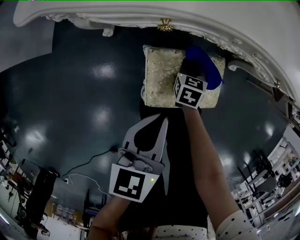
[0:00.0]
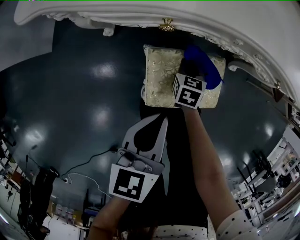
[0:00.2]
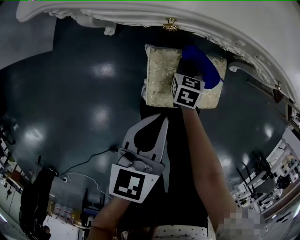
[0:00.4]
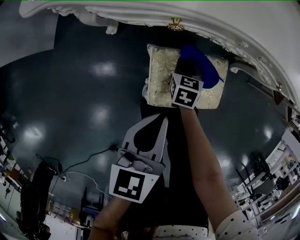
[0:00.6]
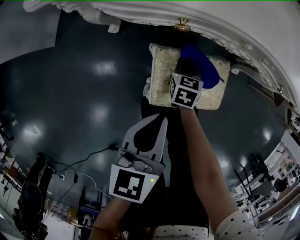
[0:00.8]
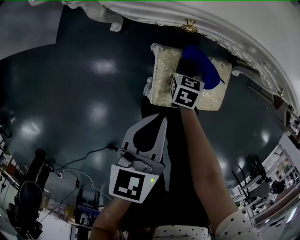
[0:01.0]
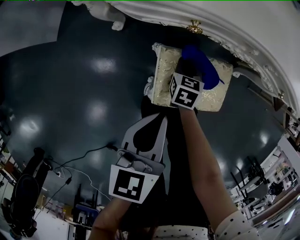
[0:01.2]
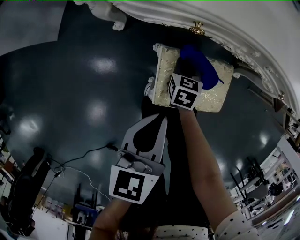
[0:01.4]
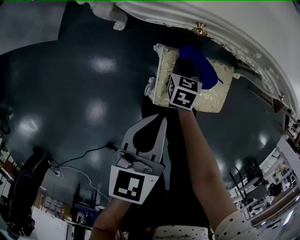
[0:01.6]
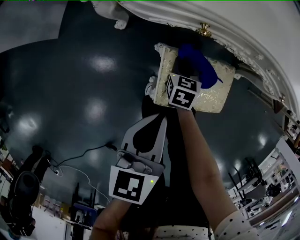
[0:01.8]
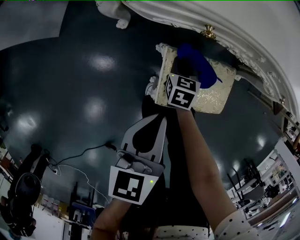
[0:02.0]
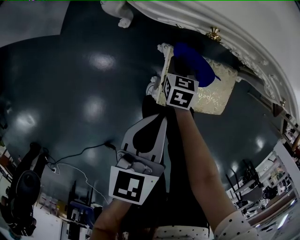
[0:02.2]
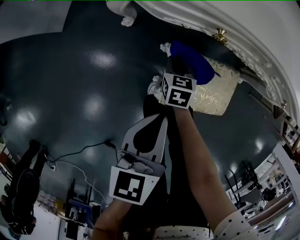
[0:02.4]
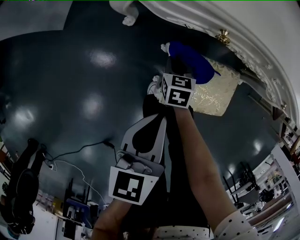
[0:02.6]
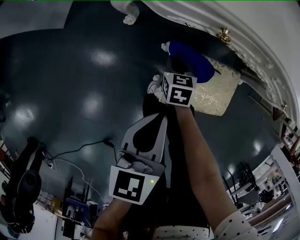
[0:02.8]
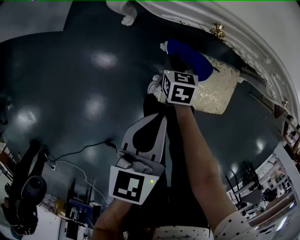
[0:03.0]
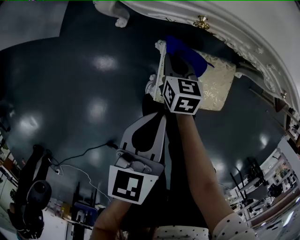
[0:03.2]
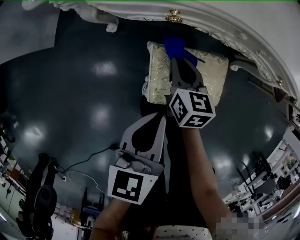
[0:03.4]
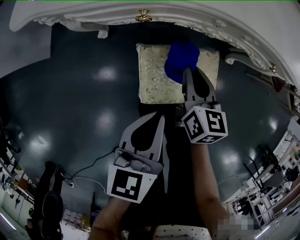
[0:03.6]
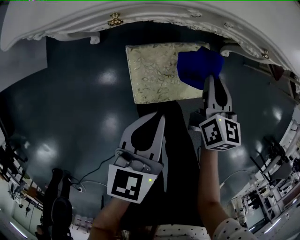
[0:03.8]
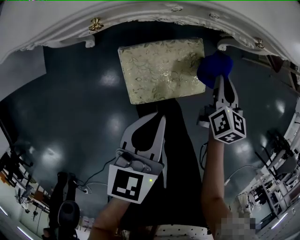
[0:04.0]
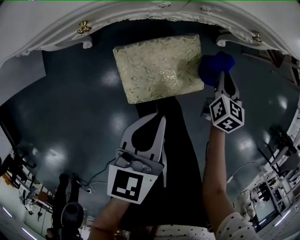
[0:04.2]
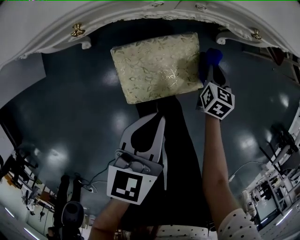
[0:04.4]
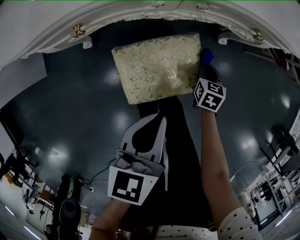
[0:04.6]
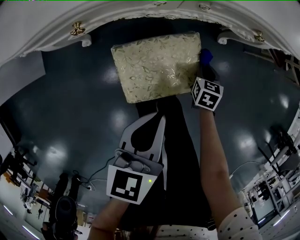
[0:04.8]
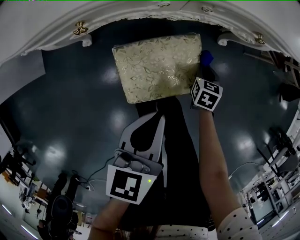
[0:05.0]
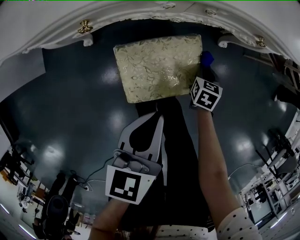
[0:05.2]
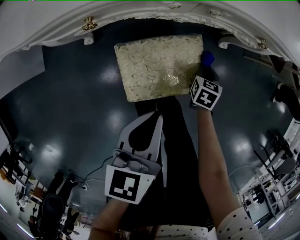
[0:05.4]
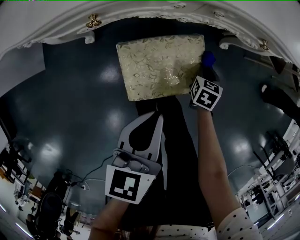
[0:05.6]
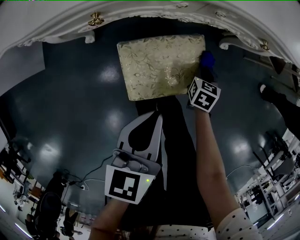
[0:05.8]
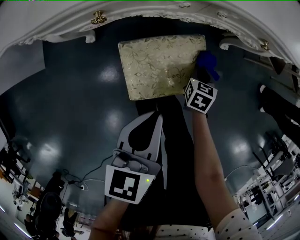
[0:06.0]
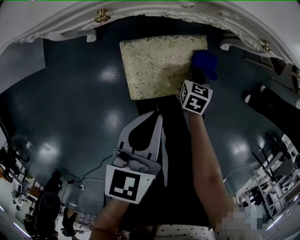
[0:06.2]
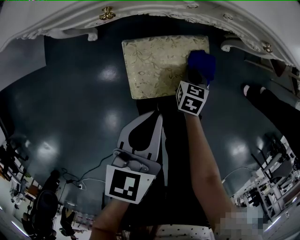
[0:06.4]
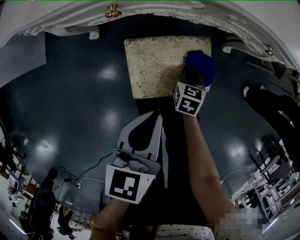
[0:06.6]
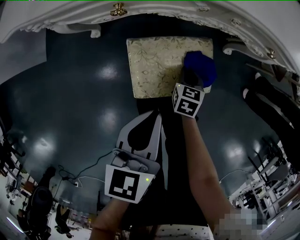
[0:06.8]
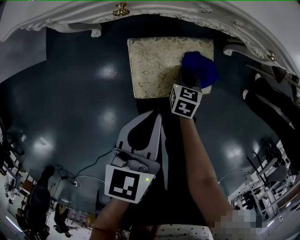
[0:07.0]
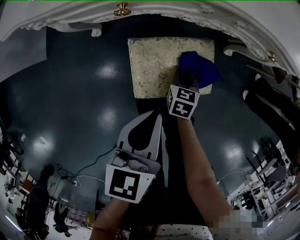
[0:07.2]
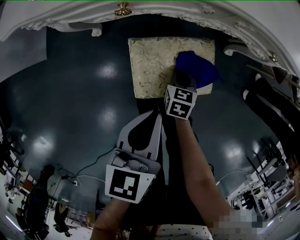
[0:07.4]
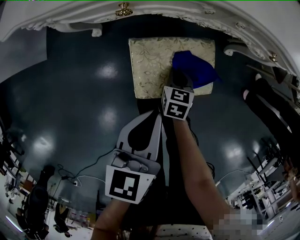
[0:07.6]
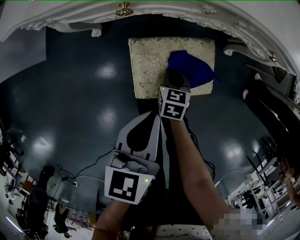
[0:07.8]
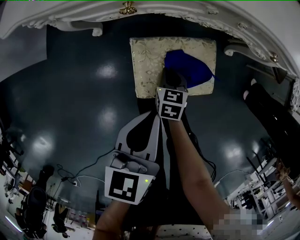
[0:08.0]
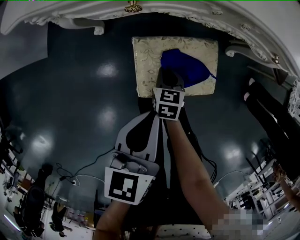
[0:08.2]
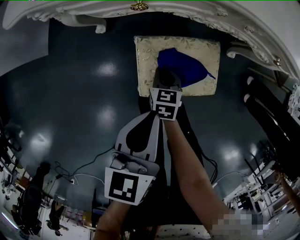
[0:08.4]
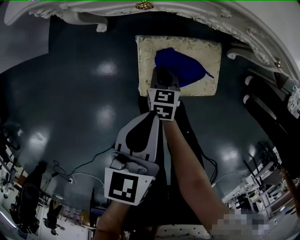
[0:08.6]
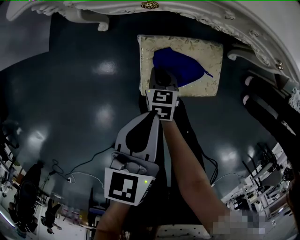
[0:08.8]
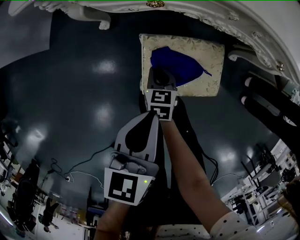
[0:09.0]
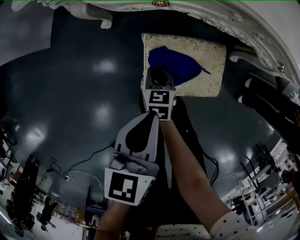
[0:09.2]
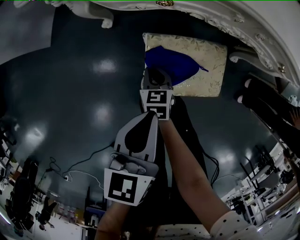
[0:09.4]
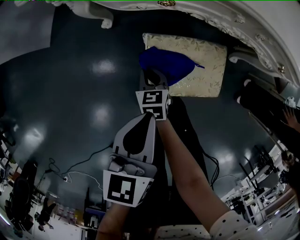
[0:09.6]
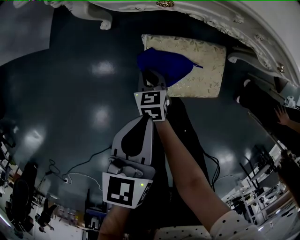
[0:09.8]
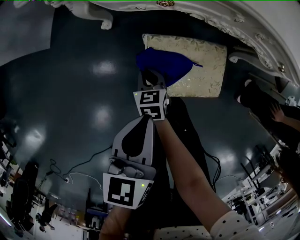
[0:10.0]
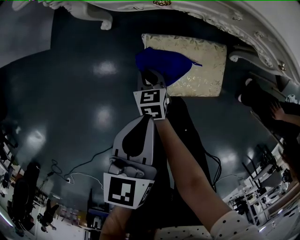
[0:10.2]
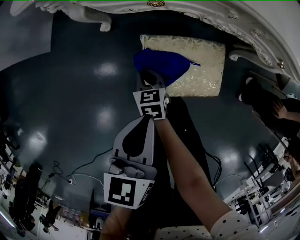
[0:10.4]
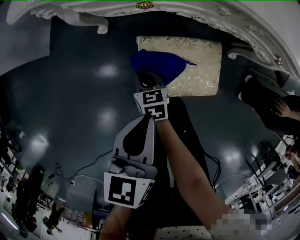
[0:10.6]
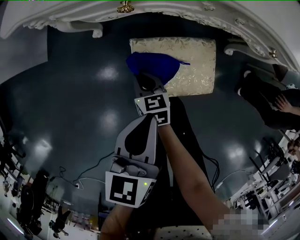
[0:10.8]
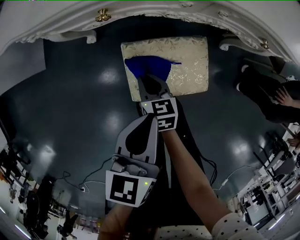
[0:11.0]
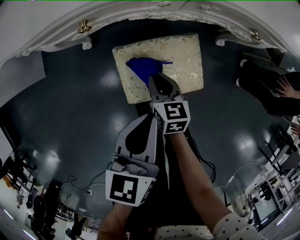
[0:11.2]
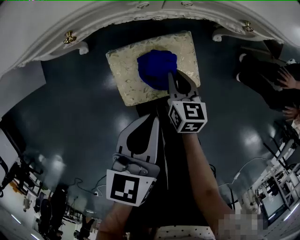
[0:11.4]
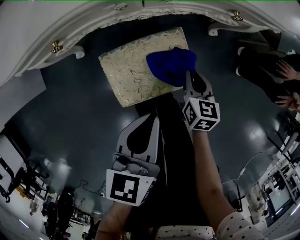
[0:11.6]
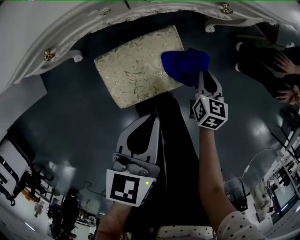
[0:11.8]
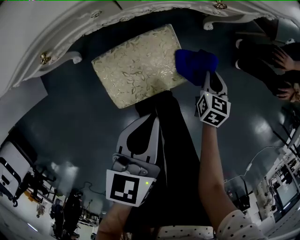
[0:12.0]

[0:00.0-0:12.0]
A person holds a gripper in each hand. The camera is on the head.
0:00.0 to 0:01.6: The right gripper shifts roughly 10 cm to the left, while the left gripper moves roughly 5 cm.
0:01.6 to 0:03.0: The right gripper travels to the left by about 5 cm.
0:03.0 to 0:04.4: The left gripper ends up about 20 cm from where it was, and changes its angle by approximately 30 degrees. The right gripper reaches about 15 cm upward, then returns, and swivels some 40 degrees.
0:04.4 to 0:06.0: The right gripper goes roughly 5 cm to the left.
0:06.0 to 0:07.6: The right gripper heads to the left and backward, covering about 15 cm.
0:07.6 to 0:09.0: The right gripper heads to the left, covering about 10 cm.
0:09.0 to 0:10.4: The right gripper is displaced to the left by some 5 cm.
0:10.4 to 0:12.0: The right gripper moves some 40 cm, and turns by approximately 50 degrees; the left gripper moves about 20 cm, and changes its angle by approximately 30 degrees.

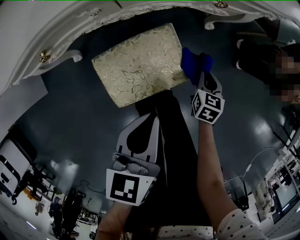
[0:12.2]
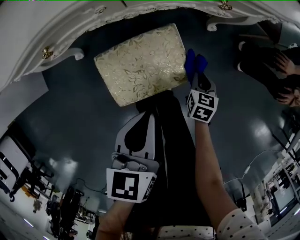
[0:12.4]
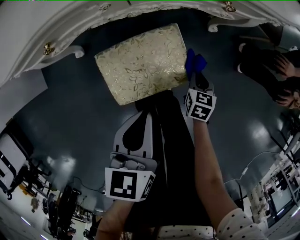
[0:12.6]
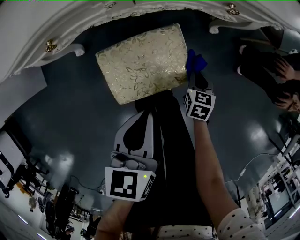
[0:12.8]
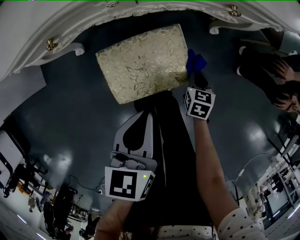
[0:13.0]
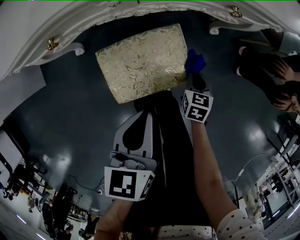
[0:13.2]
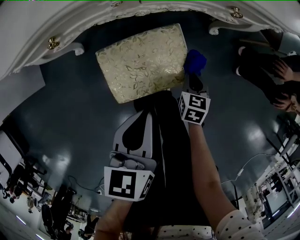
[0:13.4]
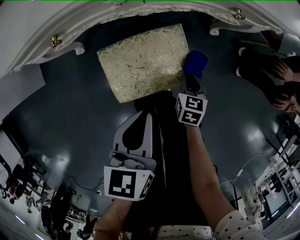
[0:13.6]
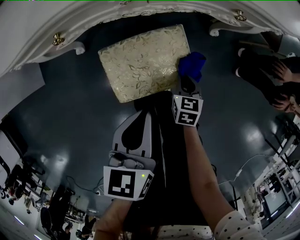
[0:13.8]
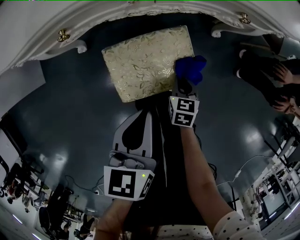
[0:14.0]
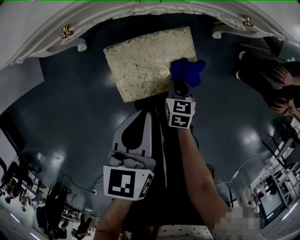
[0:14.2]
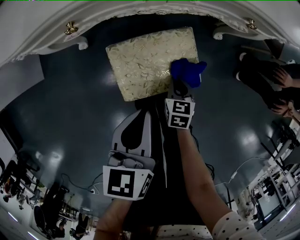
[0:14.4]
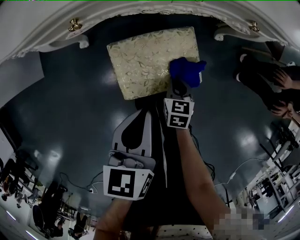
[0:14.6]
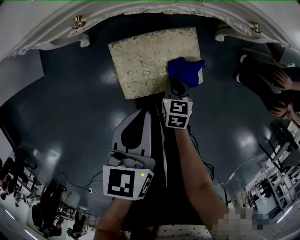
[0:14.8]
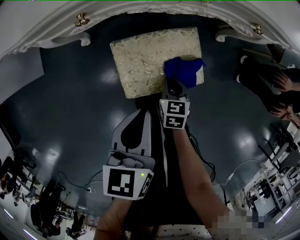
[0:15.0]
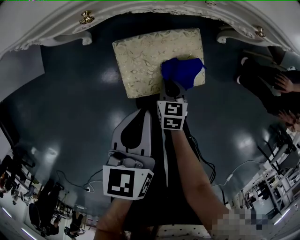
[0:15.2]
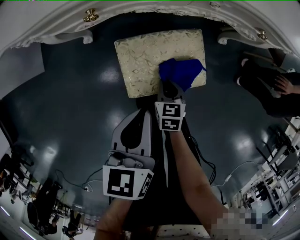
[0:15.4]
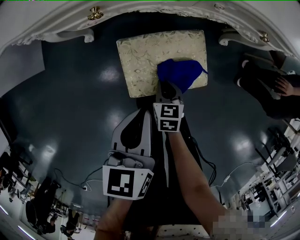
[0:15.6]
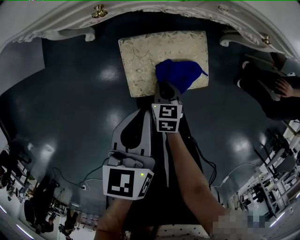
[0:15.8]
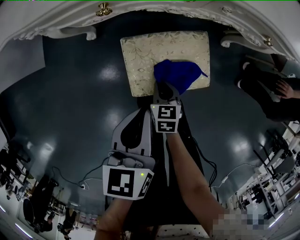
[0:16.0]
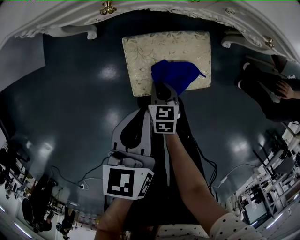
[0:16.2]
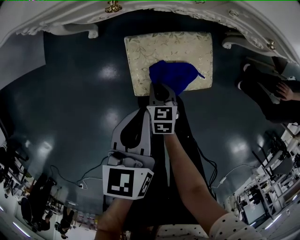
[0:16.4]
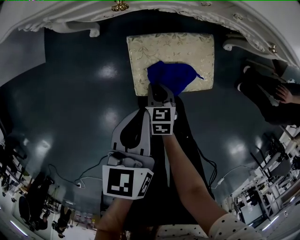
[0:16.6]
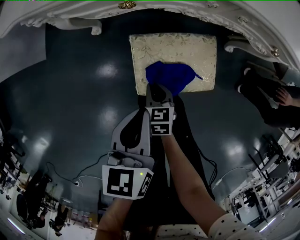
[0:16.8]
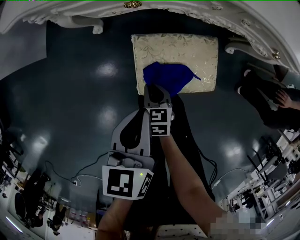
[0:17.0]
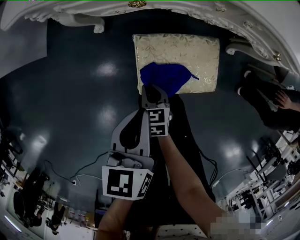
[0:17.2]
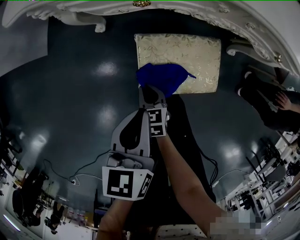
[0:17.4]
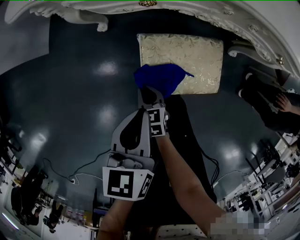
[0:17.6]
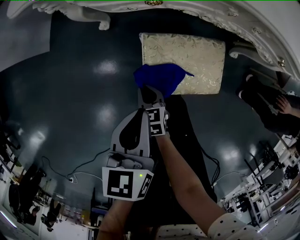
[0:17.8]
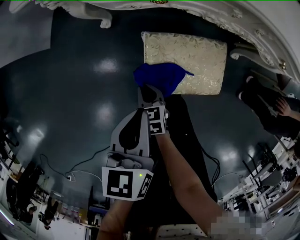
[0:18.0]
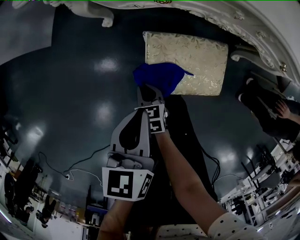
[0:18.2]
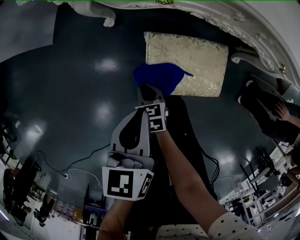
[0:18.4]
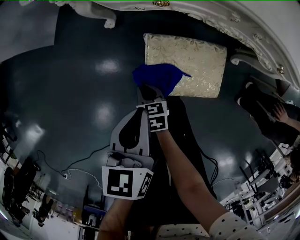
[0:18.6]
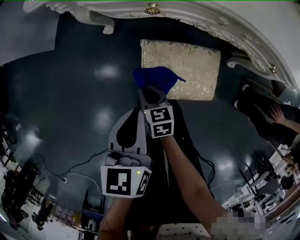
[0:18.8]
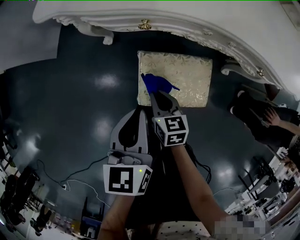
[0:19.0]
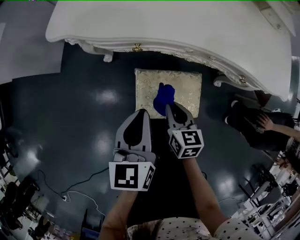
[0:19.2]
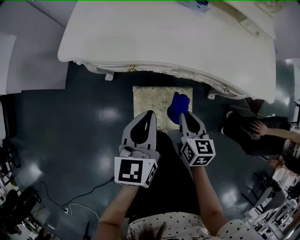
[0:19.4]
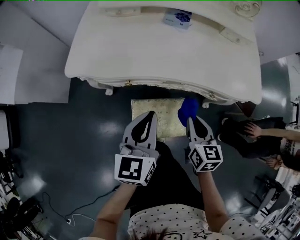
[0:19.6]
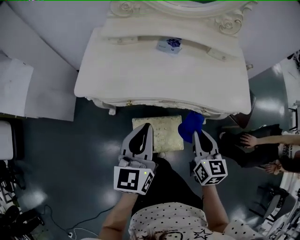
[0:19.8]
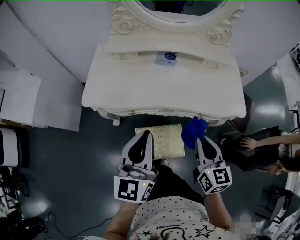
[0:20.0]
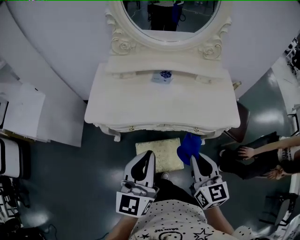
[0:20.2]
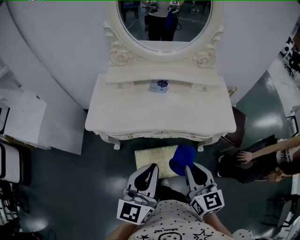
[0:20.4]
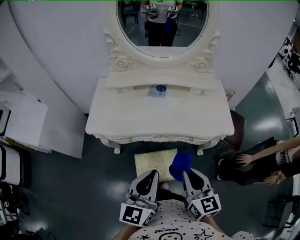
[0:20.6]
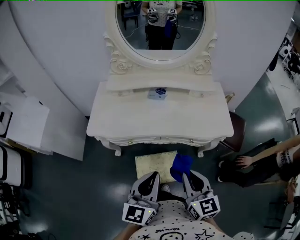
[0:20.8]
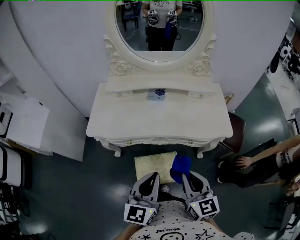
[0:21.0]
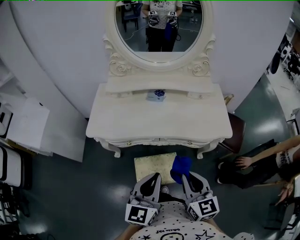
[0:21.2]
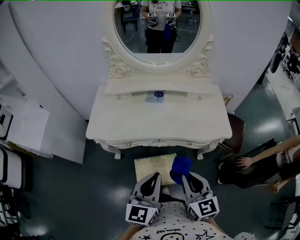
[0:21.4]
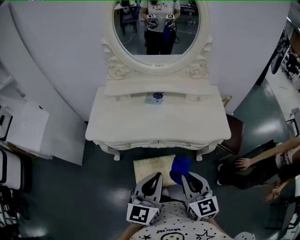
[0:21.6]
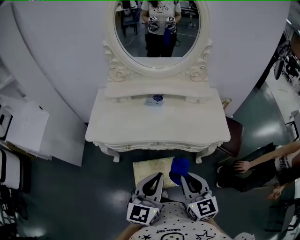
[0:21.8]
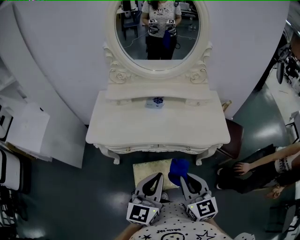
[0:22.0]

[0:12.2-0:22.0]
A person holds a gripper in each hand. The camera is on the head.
0:12.2 to 0:13.6: The right gripper shifts some 10 cm to the left.
0:13.6 to 0:15.0: The left gripper goes roughly 5 cm to the left. The right gripper moves to the left, roughly 10 cm.
0:15.0 to 0:16.4: The left gripper shifts roughly 5 cm to the left. Meanwhile the right gripper goes roughly 10 cm to the left.
0:16.4 to 0:17.8: The right gripper travels to the left by some 10 cm.
0:17.8 to 0:19.2: The right gripper moves upward and to the right, roughly 25 cm. The left gripper moves upward, to the right and forward, approximately 10 cm.
0:19.2 to 0:20.6: The left gripper heads upward and to the right, covering approximately 30 cm, and swivels about 30 degrees. The right gripper heads upward, covering roughly 40 cm, and changes its angle by some 30 degrees.
0:20.6 to 0:22.0: The grippers move only a little.

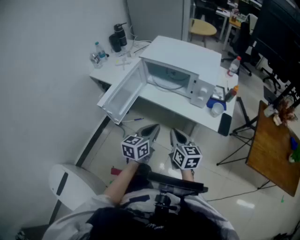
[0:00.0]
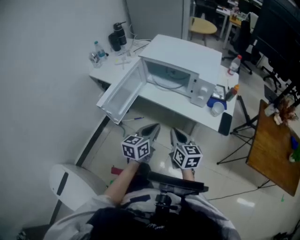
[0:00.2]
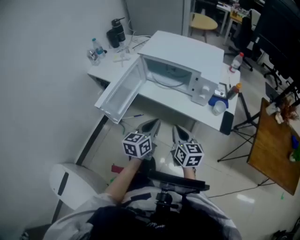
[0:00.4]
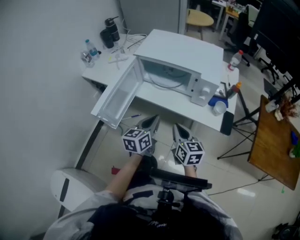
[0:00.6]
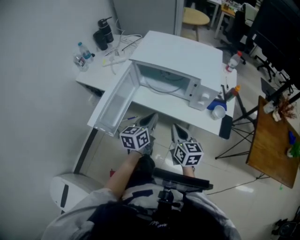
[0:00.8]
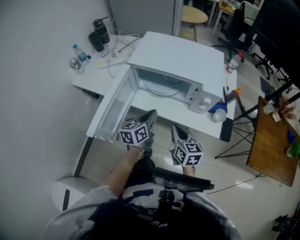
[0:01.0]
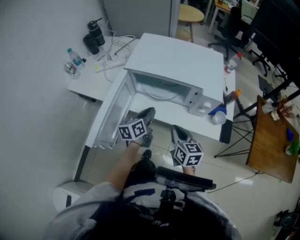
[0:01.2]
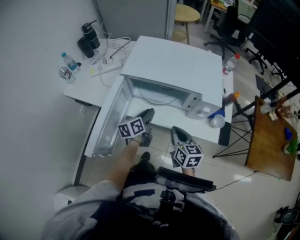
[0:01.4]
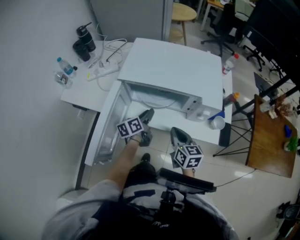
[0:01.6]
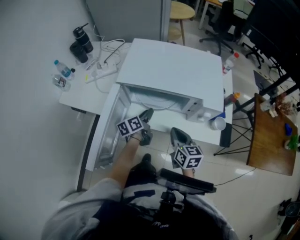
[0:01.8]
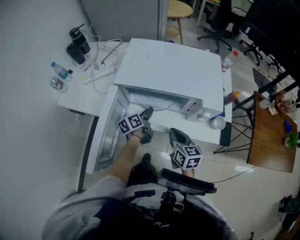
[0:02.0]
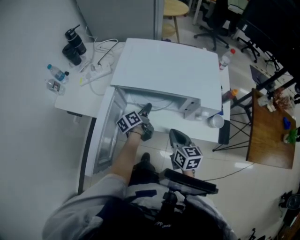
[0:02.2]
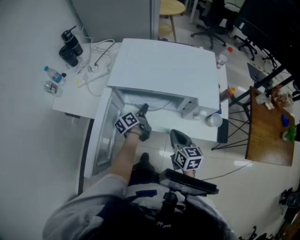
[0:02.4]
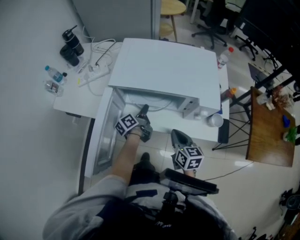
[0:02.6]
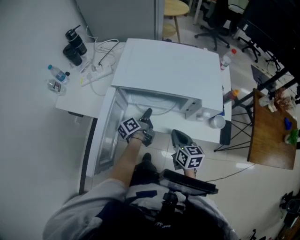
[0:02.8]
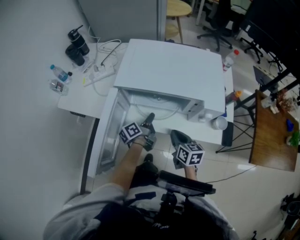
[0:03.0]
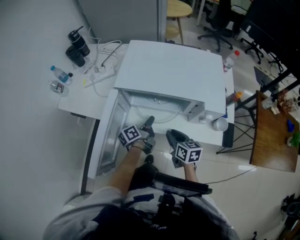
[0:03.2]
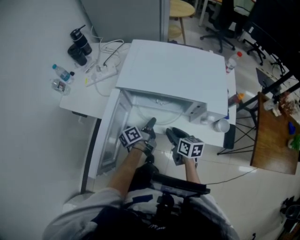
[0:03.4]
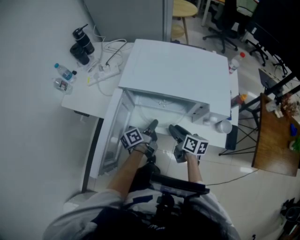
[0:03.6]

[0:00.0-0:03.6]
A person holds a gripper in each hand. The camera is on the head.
0:00.0 to 0:01.8: The left gripper is displaced forward by roughly 30 cm, turns by approximately 30 degrees, and opens; the right gripper travels forward by about 20 cm.
0:01.8 to 0:03.6: The left gripper rotates approximately 20 degrees. Meanwhile the right gripper shifts about 5 cm downward, rotates roughly 30 degrees, and opens up.
